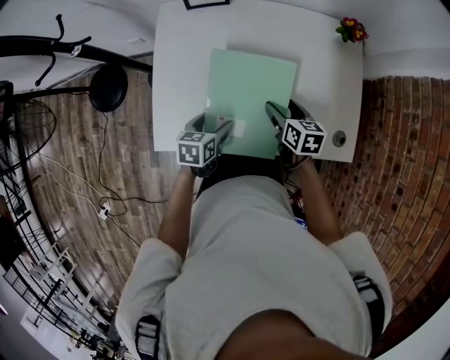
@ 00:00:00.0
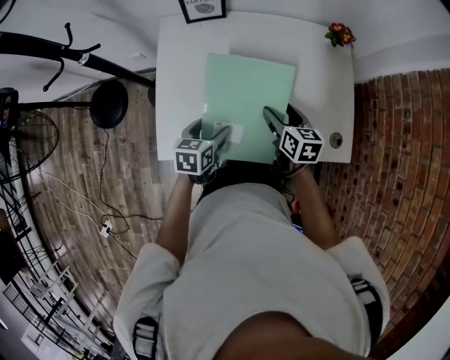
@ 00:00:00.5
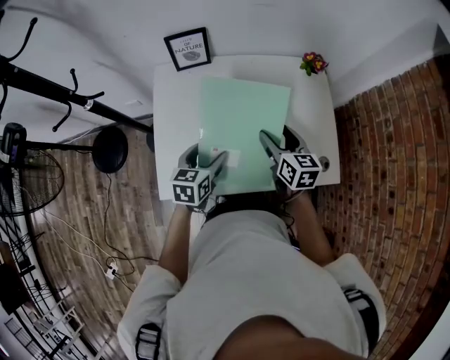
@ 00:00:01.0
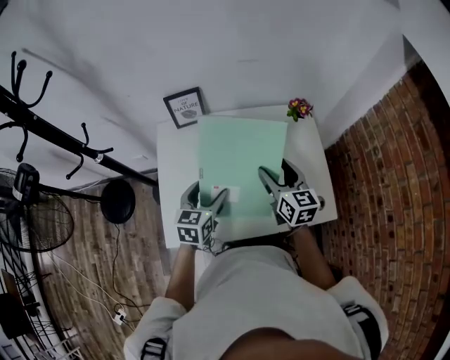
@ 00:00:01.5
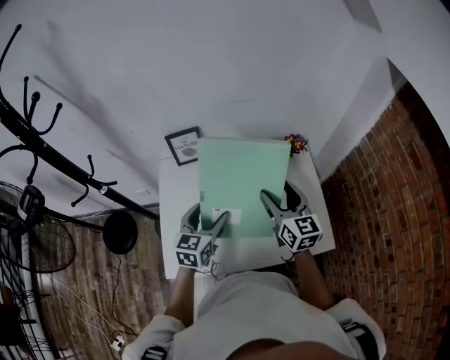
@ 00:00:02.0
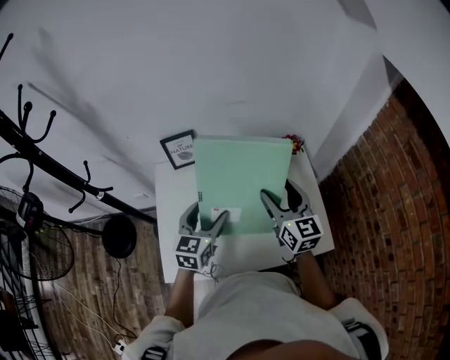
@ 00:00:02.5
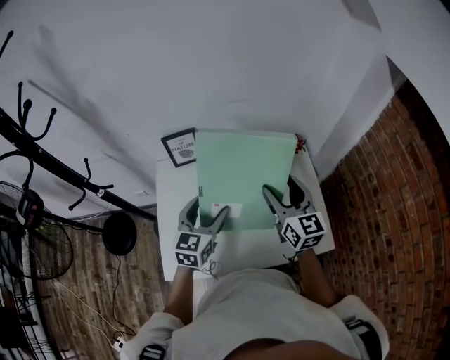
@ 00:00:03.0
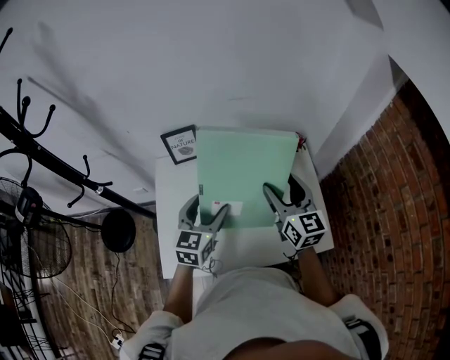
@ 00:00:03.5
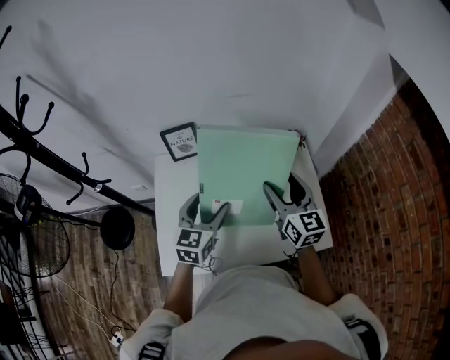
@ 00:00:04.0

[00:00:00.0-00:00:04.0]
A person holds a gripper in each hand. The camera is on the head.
00:00:00.0 to 00:00:02.0: The left gripper travels upward and forward by about 25 cm, and rotates some 40 degrees. Meanwhile the right gripper moves upward, about 25 cm, and tilts its fingers some 30 degrees upward.
00:00:02.0 to 00:00:04.0: The grippers stay close to where they were, moving slightly.

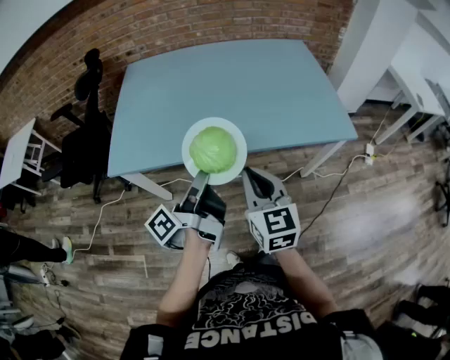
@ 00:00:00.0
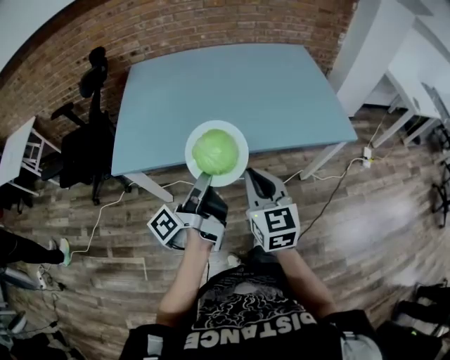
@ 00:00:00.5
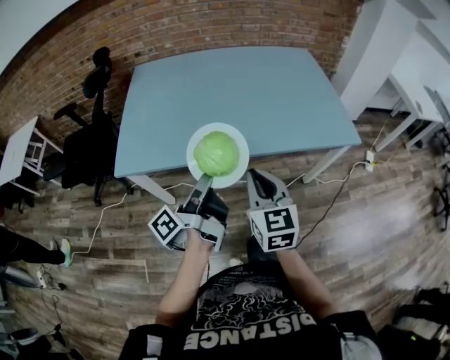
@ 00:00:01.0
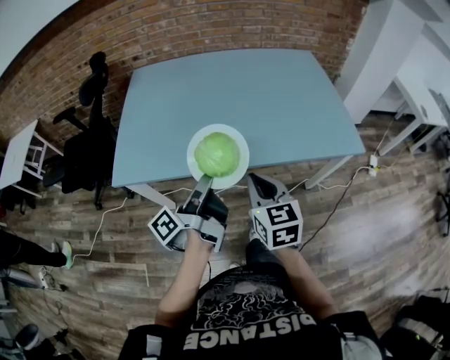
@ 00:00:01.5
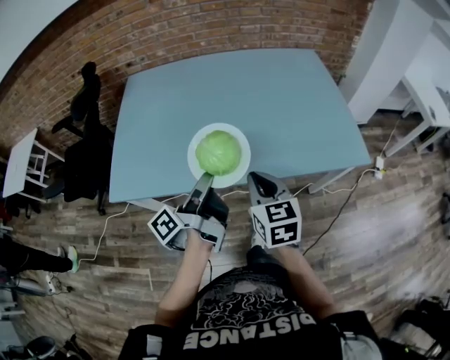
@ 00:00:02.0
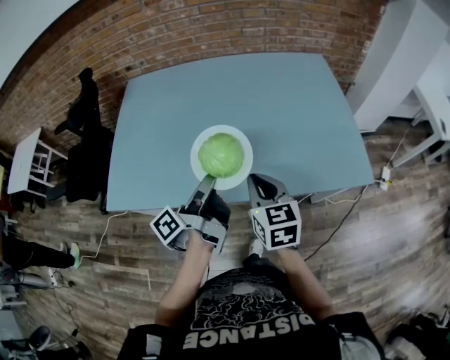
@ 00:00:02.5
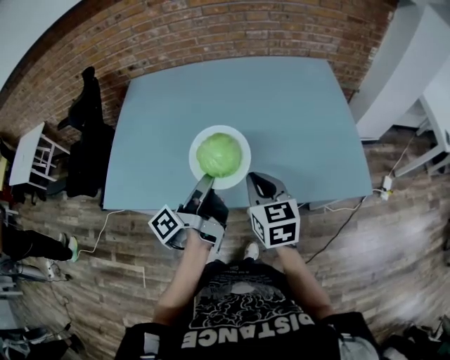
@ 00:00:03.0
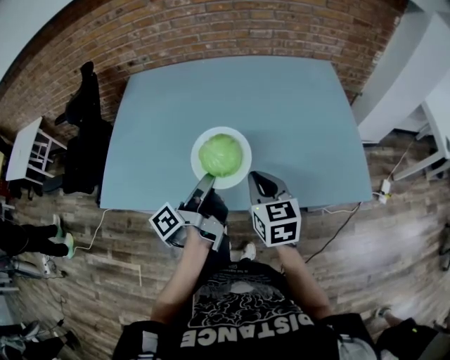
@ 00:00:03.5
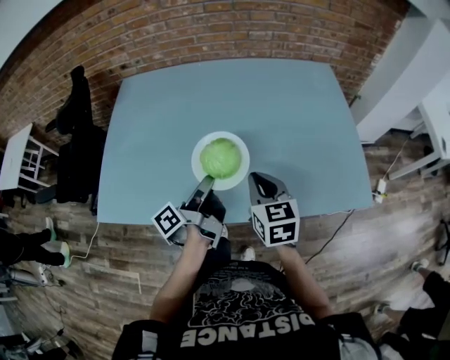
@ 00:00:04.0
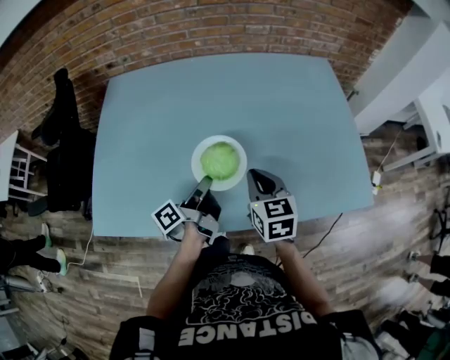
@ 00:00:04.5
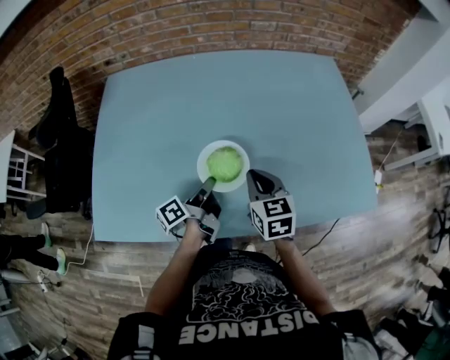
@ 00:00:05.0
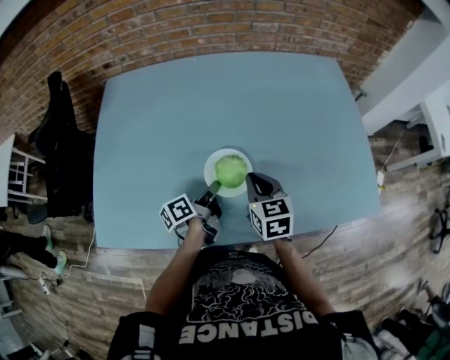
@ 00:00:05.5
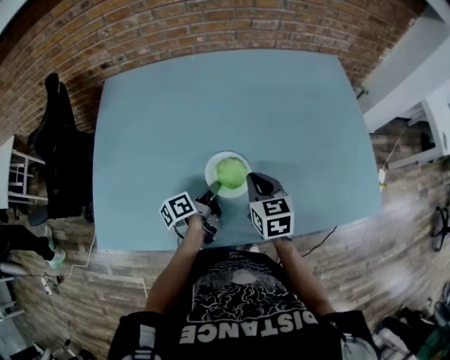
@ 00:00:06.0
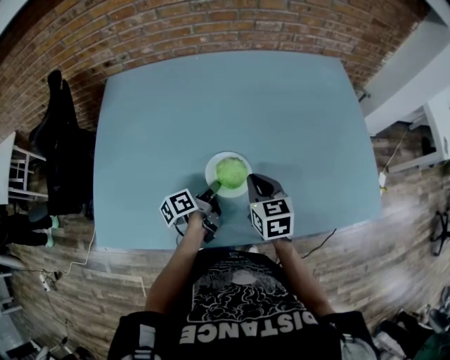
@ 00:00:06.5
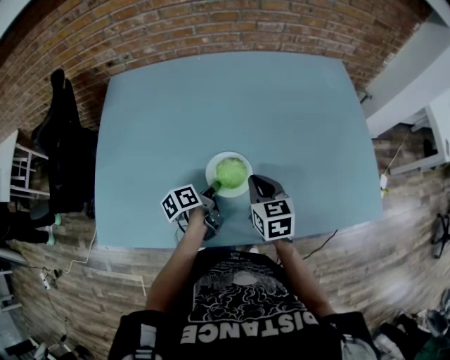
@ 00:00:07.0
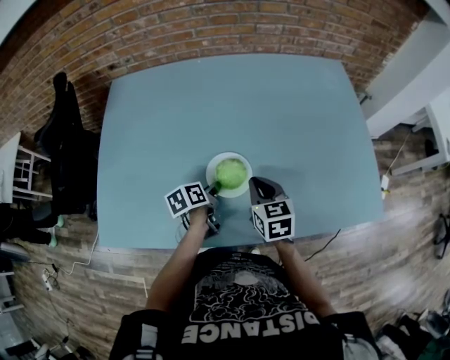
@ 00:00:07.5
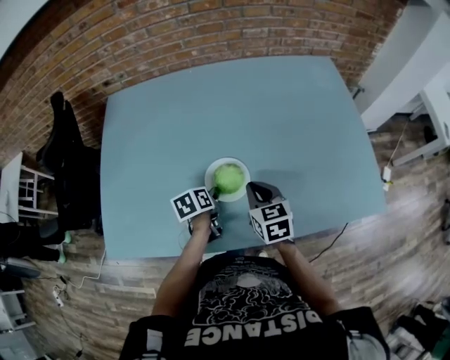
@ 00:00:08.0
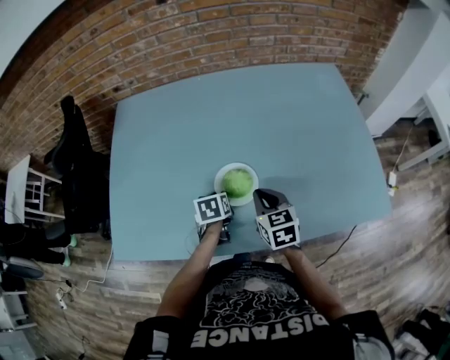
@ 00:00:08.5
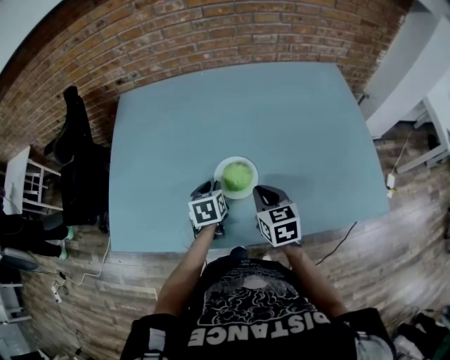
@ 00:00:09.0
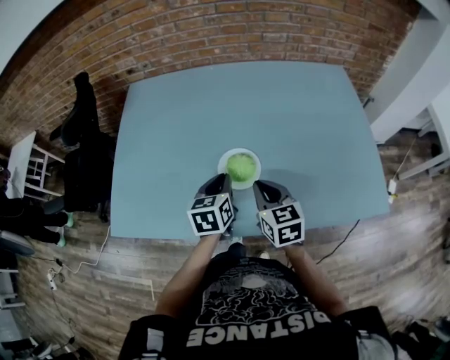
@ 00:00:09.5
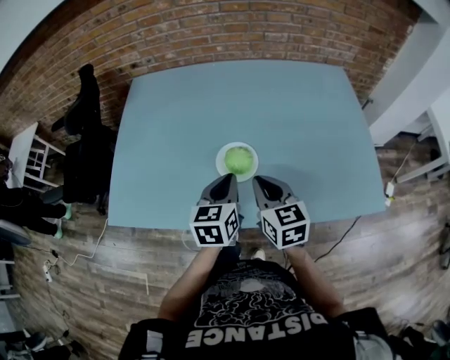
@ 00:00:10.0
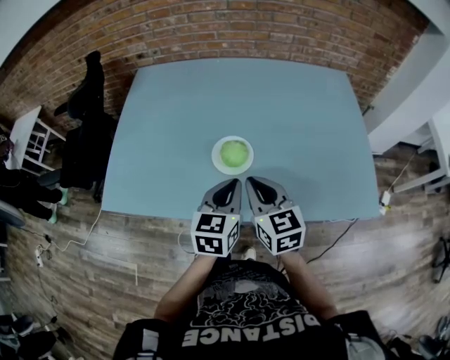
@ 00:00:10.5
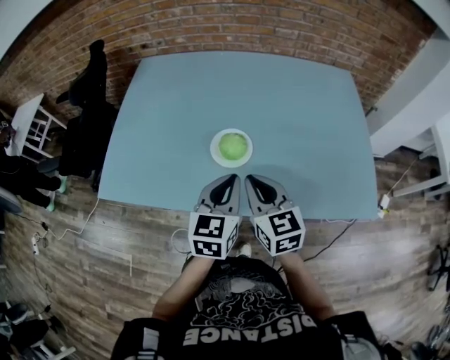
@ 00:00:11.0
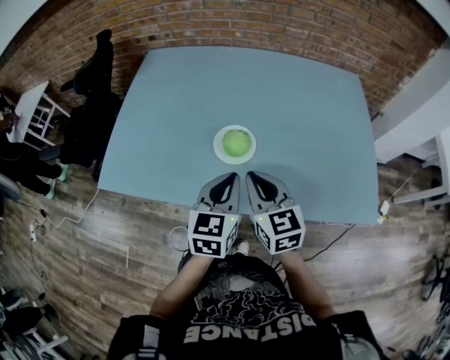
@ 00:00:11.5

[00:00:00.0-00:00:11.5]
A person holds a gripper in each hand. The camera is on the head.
00:00:00.0 to 00:00:02.0: The right gripper changes place by approximately 15 cm.
00:00:02.0 to 00:00:04.0: The right gripper moves about 15 cm.
00:00:04.0 to 00:00:06.0: The right gripper moves approximately 15 cm.
00:00:07.5 to 00:00:09.5: The right gripper changes place by about 5 cm.
00:00:09.5 to 00:00:11.5: The right gripper ends up some 10 cm from where it was.

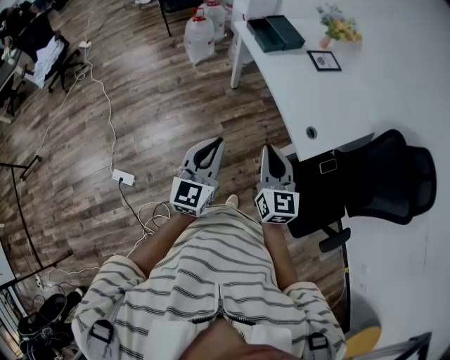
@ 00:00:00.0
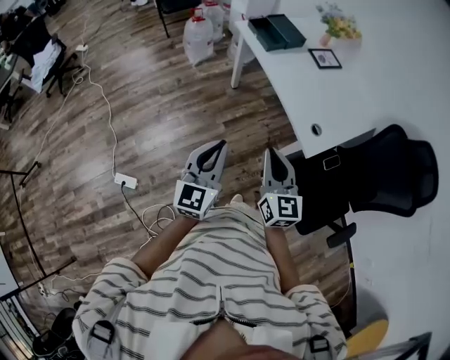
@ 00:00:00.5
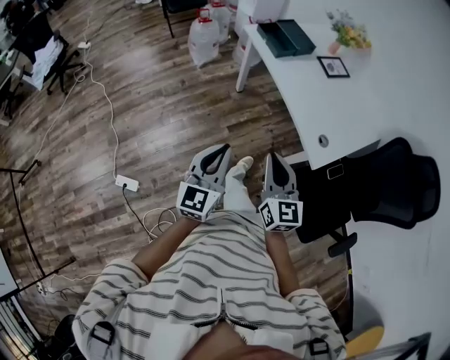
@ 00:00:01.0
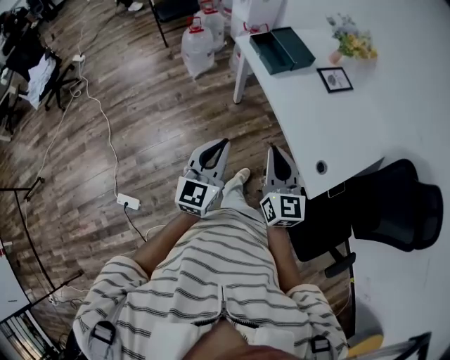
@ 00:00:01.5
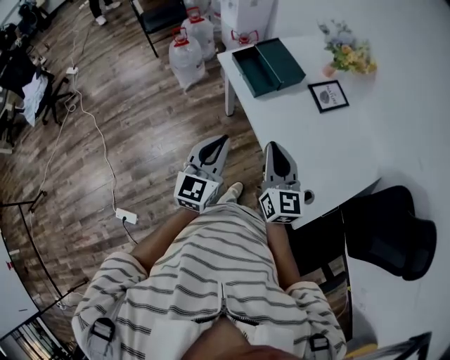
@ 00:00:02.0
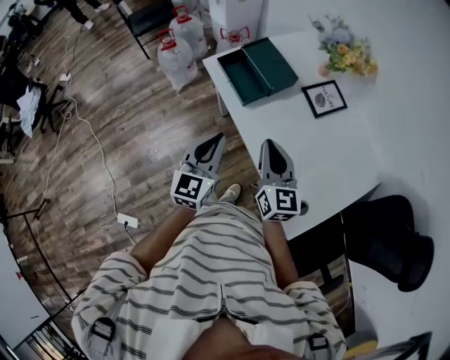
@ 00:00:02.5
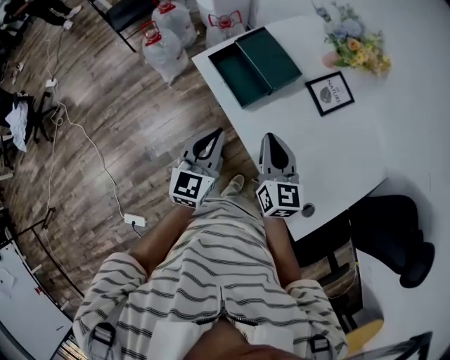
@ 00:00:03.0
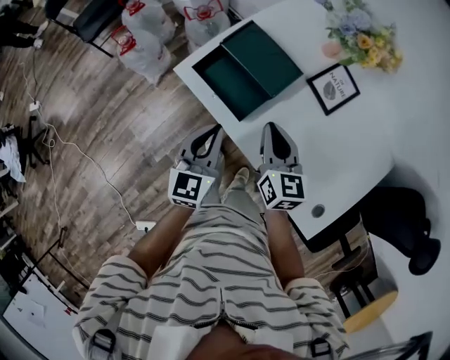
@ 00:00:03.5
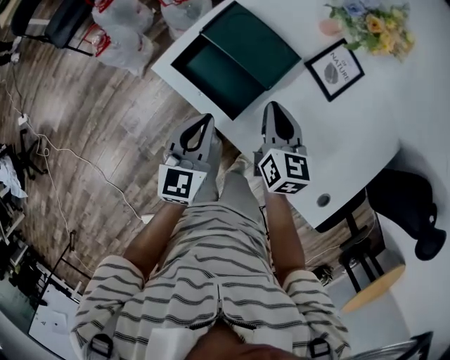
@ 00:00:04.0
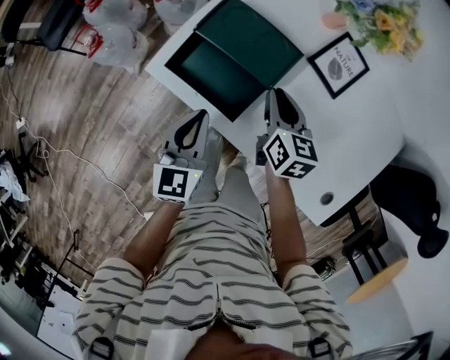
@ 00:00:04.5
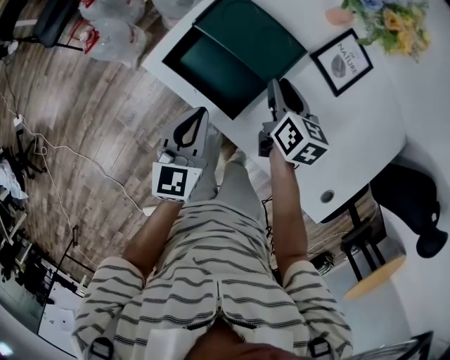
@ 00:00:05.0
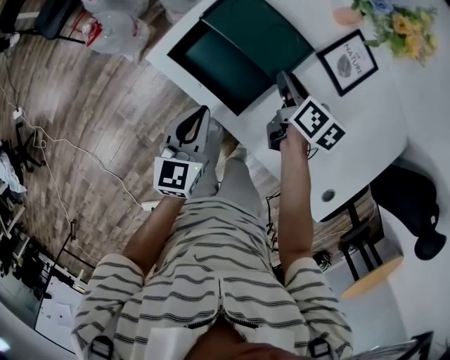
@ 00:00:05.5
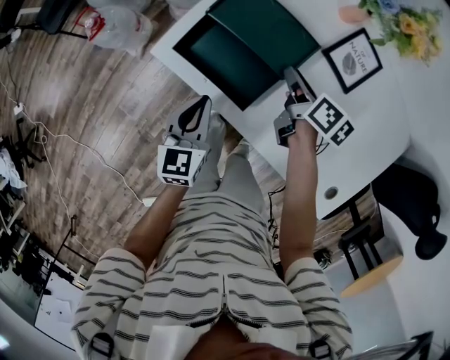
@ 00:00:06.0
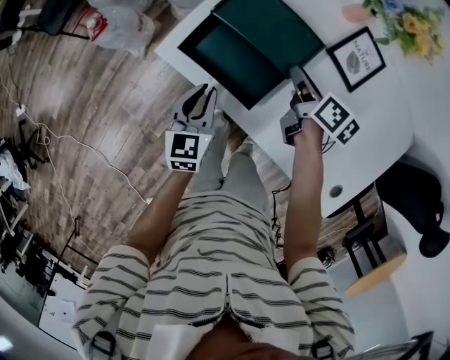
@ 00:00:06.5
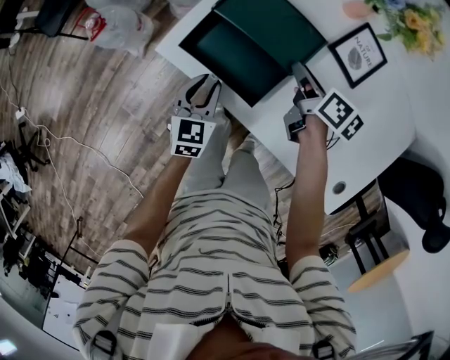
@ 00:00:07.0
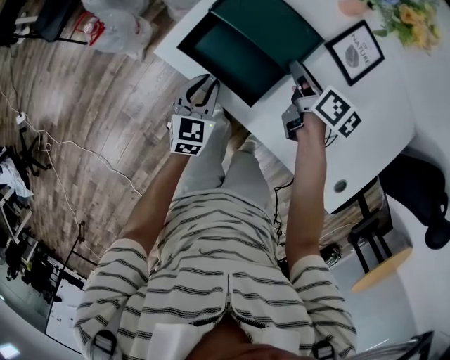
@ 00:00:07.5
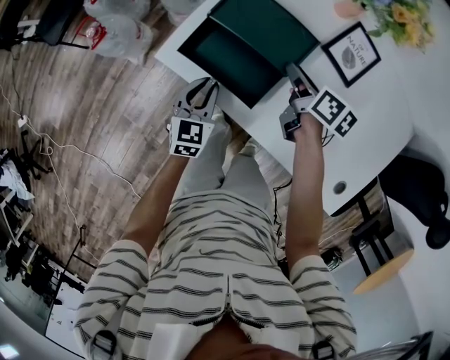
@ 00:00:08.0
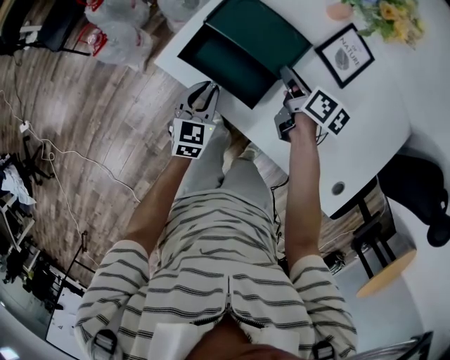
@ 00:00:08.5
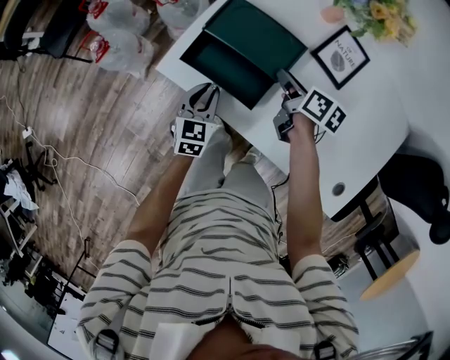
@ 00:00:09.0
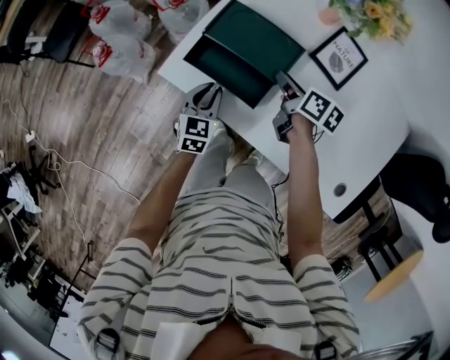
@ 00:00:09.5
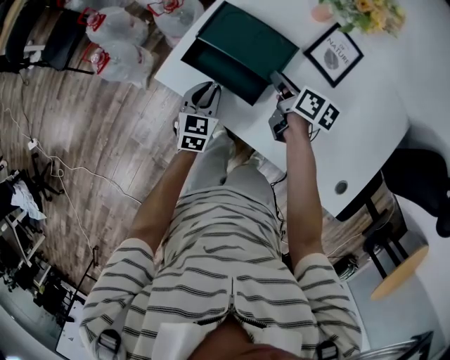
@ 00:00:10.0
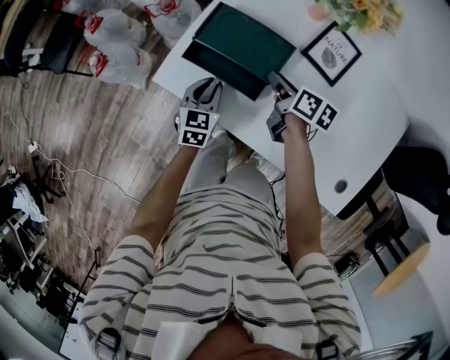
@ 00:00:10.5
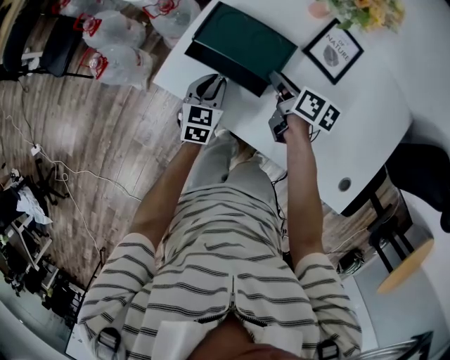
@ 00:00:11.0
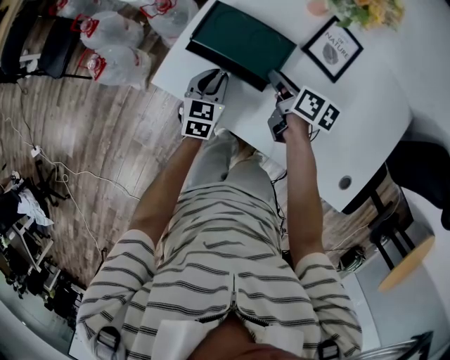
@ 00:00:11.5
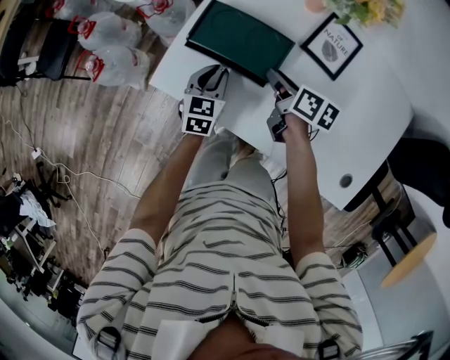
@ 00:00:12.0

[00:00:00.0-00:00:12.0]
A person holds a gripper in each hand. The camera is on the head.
00:00:00.0 to 00:00:02.0: Both grippers travel together forward, roughly 35 cm.
00:00:02.0 to 00:00:04.0: Both grippers move forward and downward, some 35 cm. The left gripper turns by approximately 20 degrees; the right gripper rotates some 30 degrees.
00:00:04.0 to 00:00:06.0: The left gripper shifts roughly 5 cm downward, while the right gripper goes approximately 10 cm downward and forward, swivels roughly 40 degrees, and opens its fingers.
00:00:06.0 to 00:00:08.0: The left gripper heads downward, covering approximately 5 cm.
00:00:08.0 to 00:00:10.0: The grippers move only a little.
00:00:10.0 to 00:00:12.0: The left gripper travels forward by roughly 5 cm.
